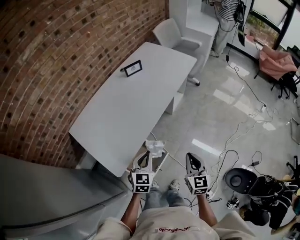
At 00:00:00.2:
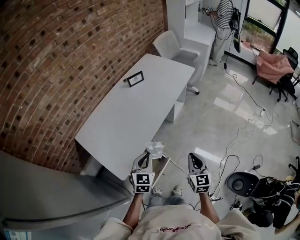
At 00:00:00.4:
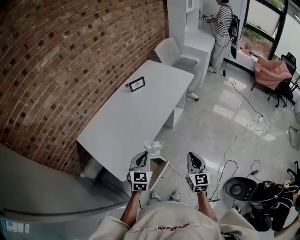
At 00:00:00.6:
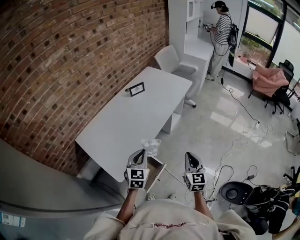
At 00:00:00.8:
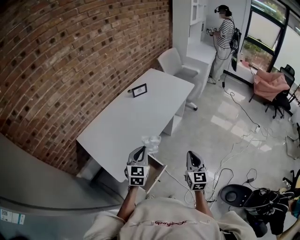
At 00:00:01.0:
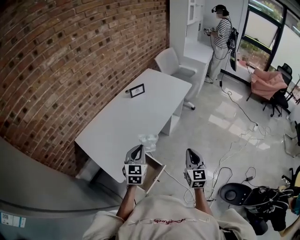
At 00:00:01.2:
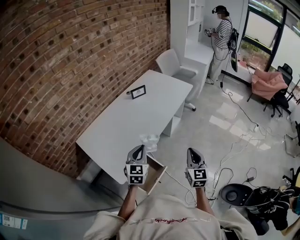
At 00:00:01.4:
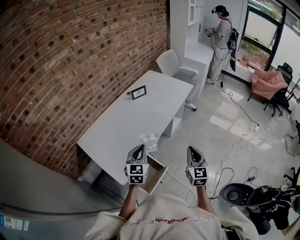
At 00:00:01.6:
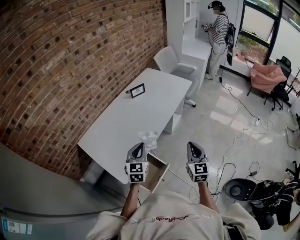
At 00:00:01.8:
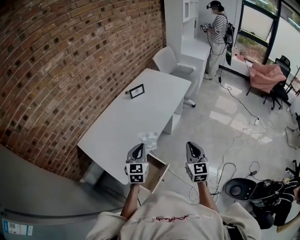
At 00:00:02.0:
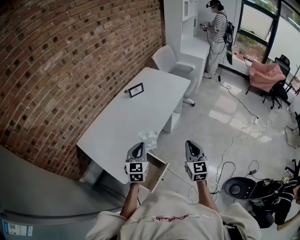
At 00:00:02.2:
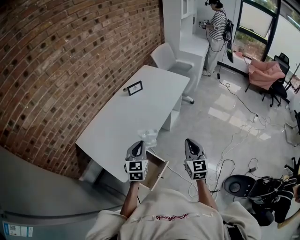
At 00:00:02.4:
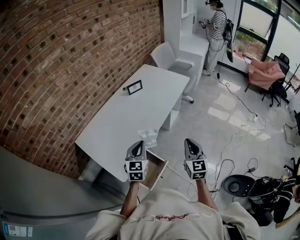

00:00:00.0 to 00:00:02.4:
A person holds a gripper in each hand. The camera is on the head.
00:00:00.0 to 00:00:01.2: The two grippers go about 10 cm upward.
00:00:01.2 to 00:00:02.4: The grippers make only small movements.

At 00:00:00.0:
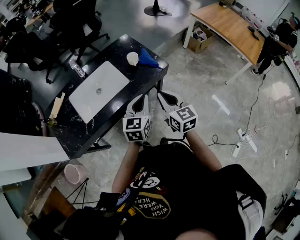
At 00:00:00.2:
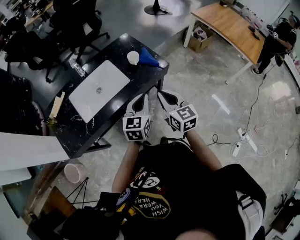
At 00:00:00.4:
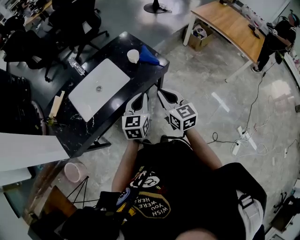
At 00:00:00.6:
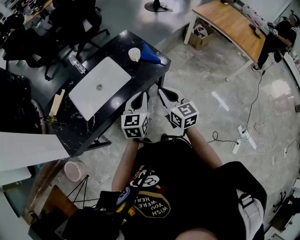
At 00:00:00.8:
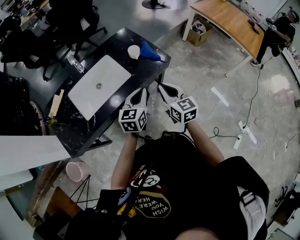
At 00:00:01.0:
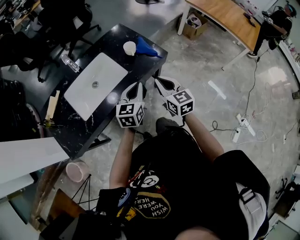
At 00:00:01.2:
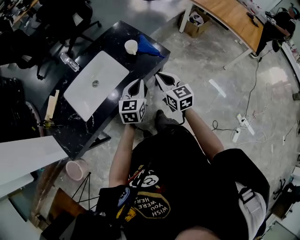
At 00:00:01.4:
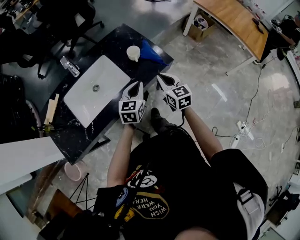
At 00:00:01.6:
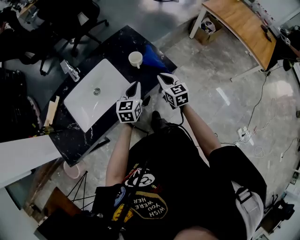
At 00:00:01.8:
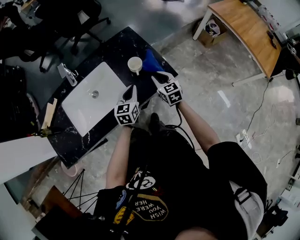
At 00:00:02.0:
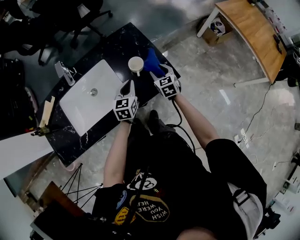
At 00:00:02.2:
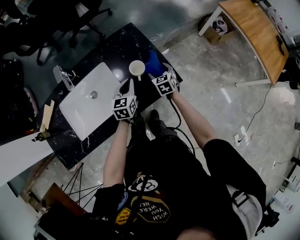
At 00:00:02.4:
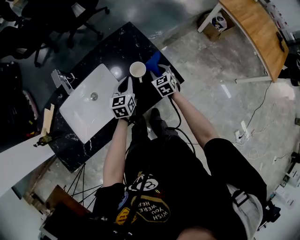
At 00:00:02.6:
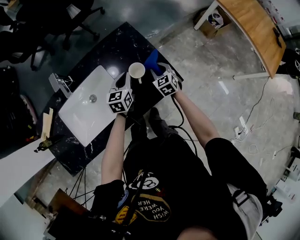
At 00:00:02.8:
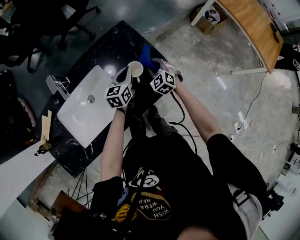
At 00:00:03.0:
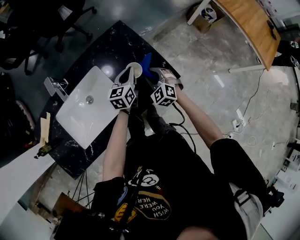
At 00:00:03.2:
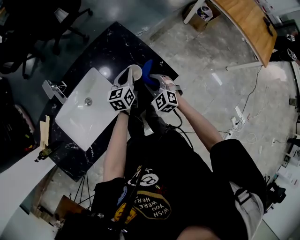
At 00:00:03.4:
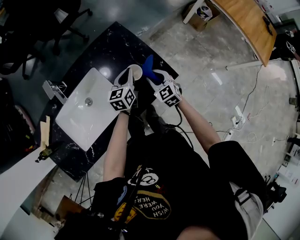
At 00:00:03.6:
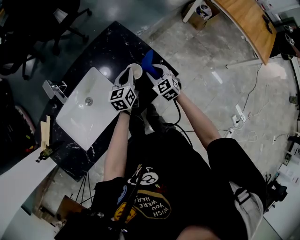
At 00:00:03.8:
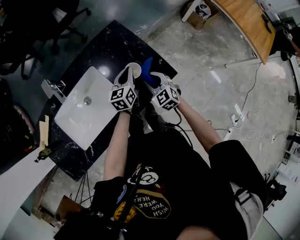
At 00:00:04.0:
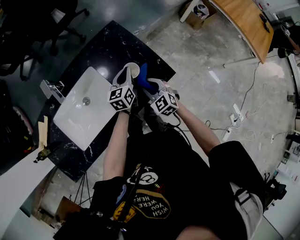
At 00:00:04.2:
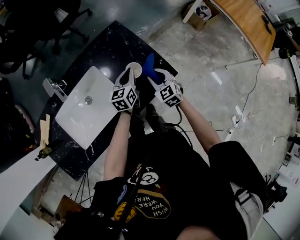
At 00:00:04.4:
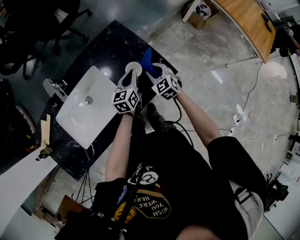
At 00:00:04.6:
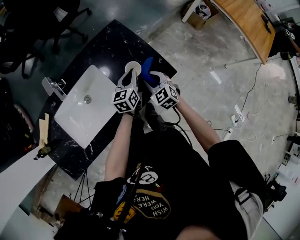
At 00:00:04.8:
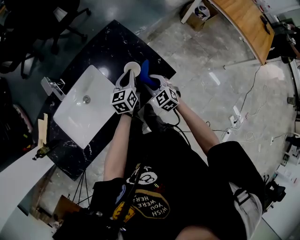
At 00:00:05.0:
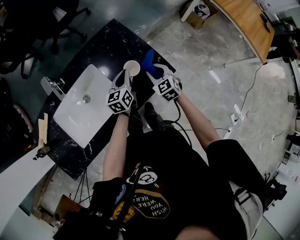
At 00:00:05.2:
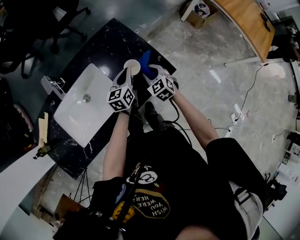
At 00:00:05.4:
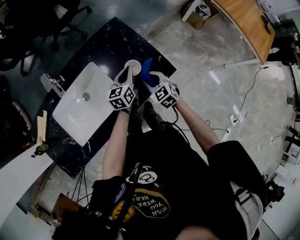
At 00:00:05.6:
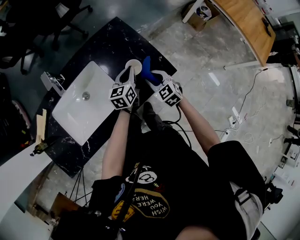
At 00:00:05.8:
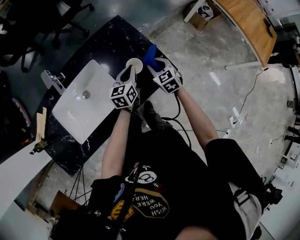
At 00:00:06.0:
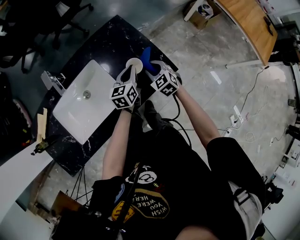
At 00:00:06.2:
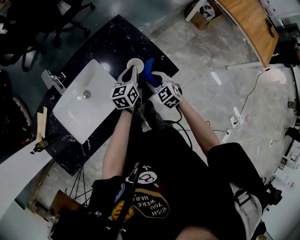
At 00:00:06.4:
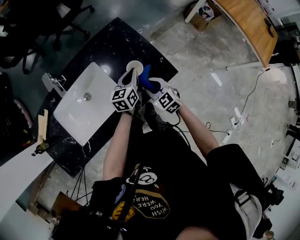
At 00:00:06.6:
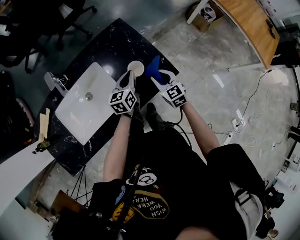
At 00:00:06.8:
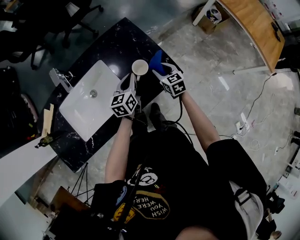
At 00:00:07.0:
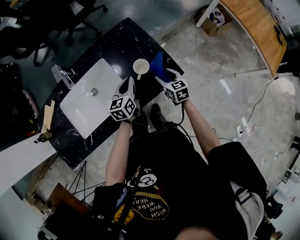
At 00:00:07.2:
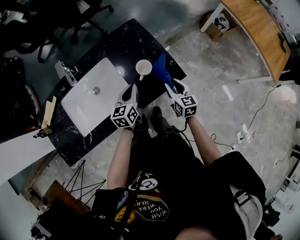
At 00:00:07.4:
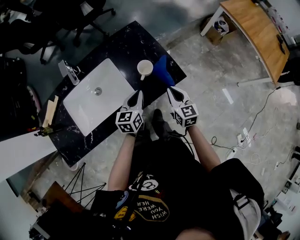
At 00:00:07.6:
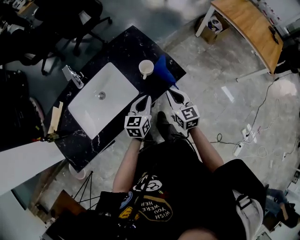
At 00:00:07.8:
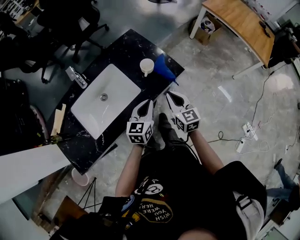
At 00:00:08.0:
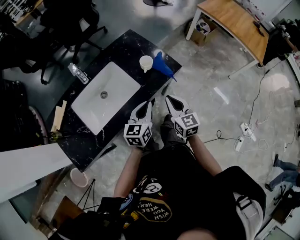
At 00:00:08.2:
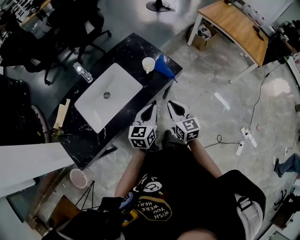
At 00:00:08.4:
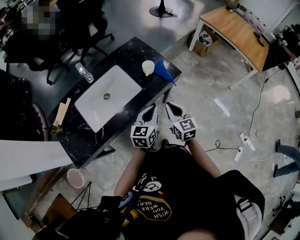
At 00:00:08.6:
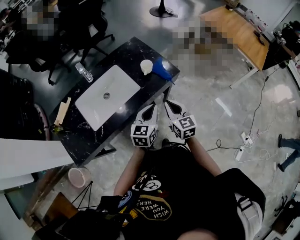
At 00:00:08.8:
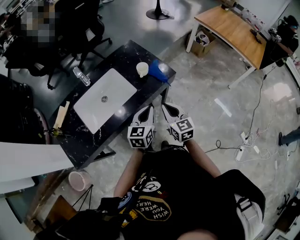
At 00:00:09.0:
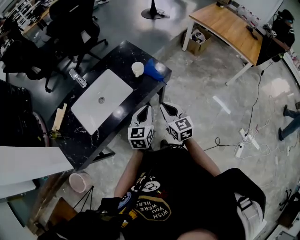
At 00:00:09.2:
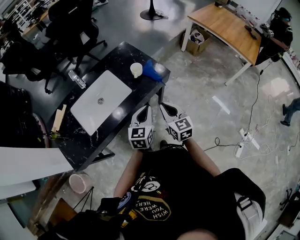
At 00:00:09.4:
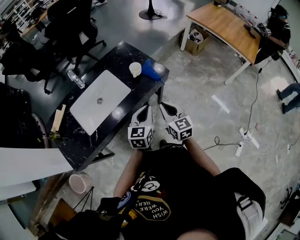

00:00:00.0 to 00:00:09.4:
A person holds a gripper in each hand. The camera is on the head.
00:00:00.0 to 00:00:01.6: Both grippers travel together forward and downward, some 25 cm.
00:00:01.6 to 00:00:03.2: The left gripper is displaced forward by roughly 20 cm. The right gripper goes approximately 15 cm downward and forward, swivels some 40 degrees, and opens its fingers.
00:00:03.2 to 00:00:04.8: The right gripper goes forward and backward, roughly 5 cm each way, reversing 3 times.
00:00:04.8 to 00:00:06.2: The right gripper swings forward and backward, about 5 cm each way, with 3 reversals.
00:00:06.2 to 00:00:07.8: The left gripper goes approximately 20 cm backward; the right gripper goes some 20 cm backward and upward, turns by about 40 degrees, and closes.
00:00:07.8 to 00:00:09.4: The left gripper moves backward, to the right and upward, roughly 10 cm. The right gripper heads backward, covering some 10 cm.

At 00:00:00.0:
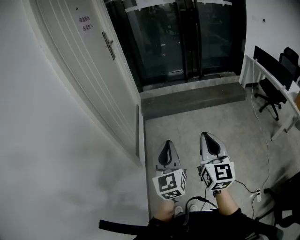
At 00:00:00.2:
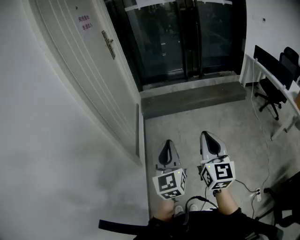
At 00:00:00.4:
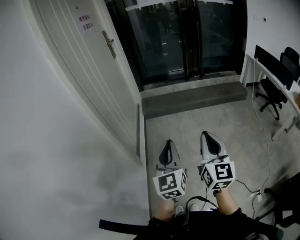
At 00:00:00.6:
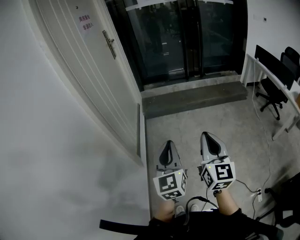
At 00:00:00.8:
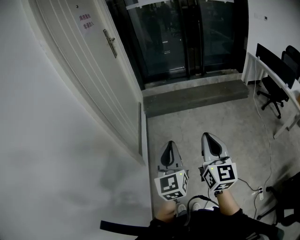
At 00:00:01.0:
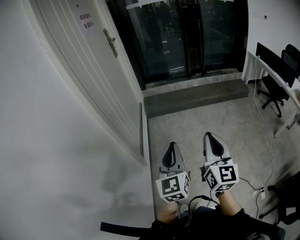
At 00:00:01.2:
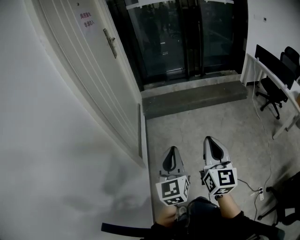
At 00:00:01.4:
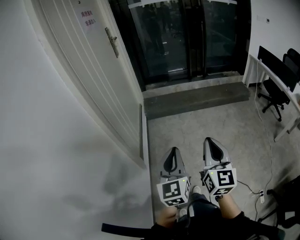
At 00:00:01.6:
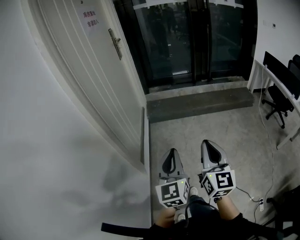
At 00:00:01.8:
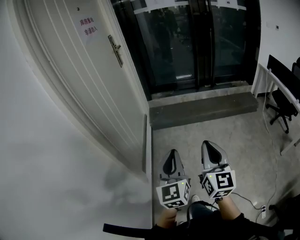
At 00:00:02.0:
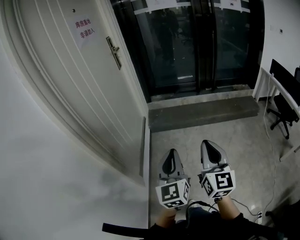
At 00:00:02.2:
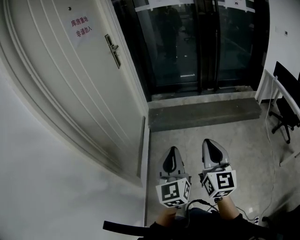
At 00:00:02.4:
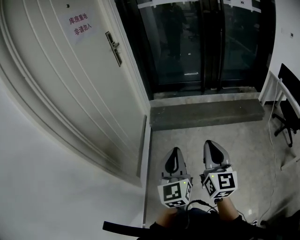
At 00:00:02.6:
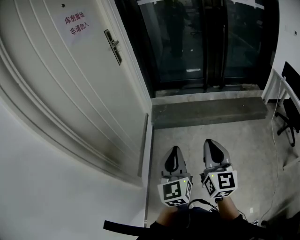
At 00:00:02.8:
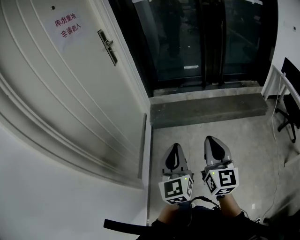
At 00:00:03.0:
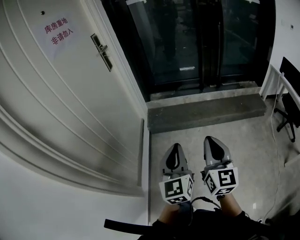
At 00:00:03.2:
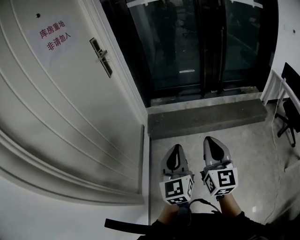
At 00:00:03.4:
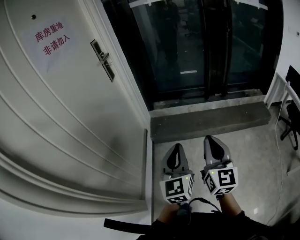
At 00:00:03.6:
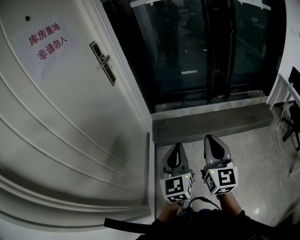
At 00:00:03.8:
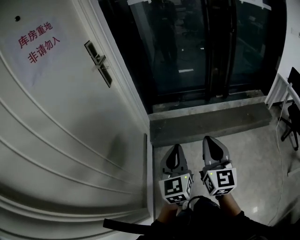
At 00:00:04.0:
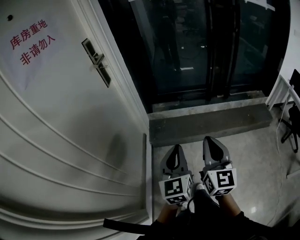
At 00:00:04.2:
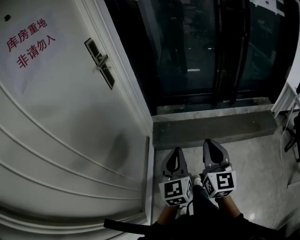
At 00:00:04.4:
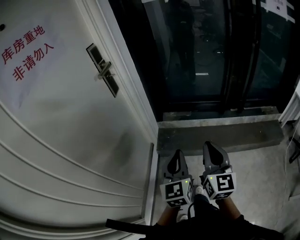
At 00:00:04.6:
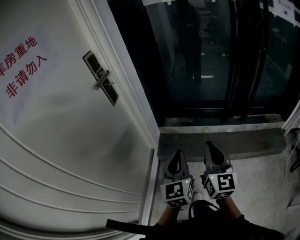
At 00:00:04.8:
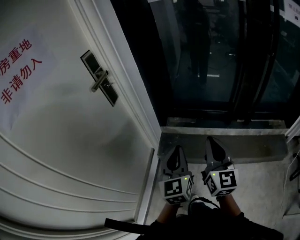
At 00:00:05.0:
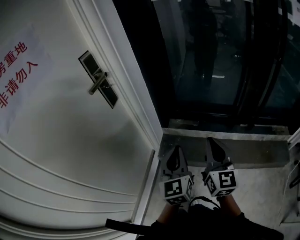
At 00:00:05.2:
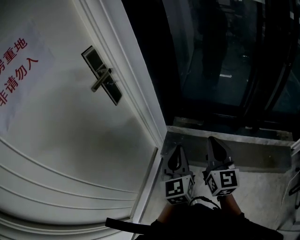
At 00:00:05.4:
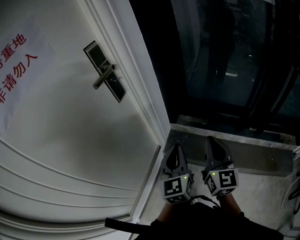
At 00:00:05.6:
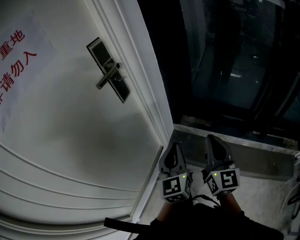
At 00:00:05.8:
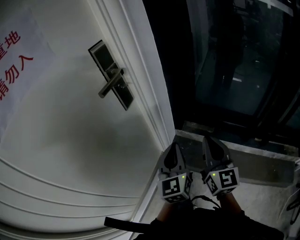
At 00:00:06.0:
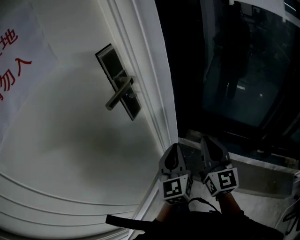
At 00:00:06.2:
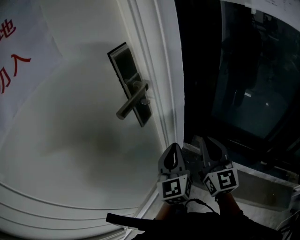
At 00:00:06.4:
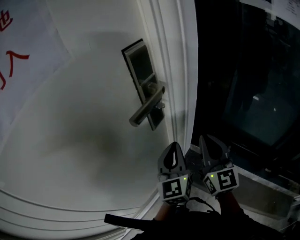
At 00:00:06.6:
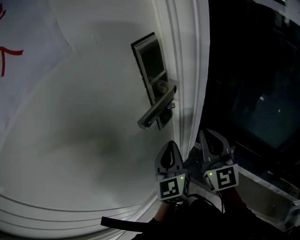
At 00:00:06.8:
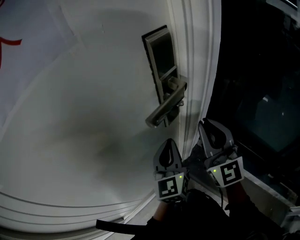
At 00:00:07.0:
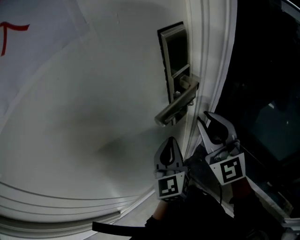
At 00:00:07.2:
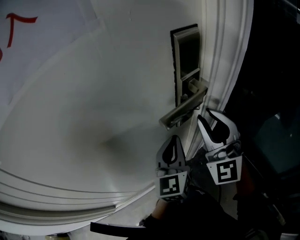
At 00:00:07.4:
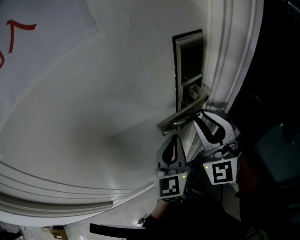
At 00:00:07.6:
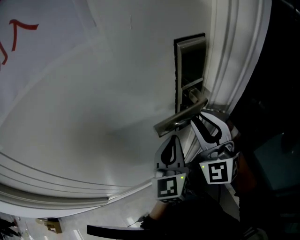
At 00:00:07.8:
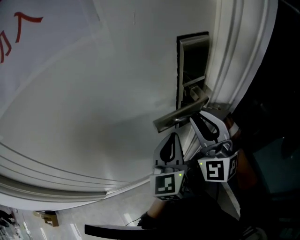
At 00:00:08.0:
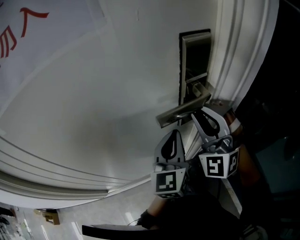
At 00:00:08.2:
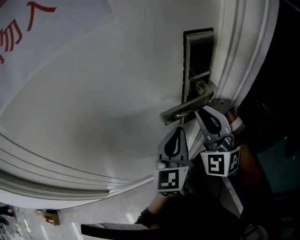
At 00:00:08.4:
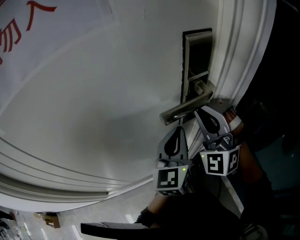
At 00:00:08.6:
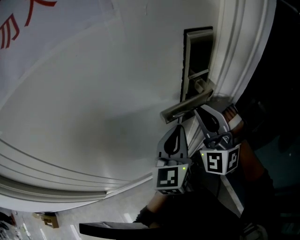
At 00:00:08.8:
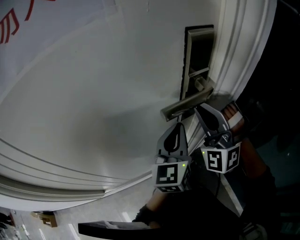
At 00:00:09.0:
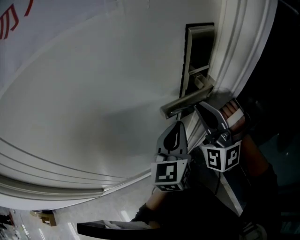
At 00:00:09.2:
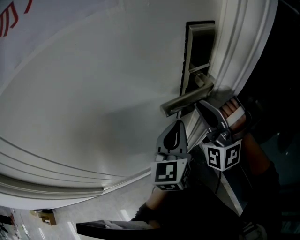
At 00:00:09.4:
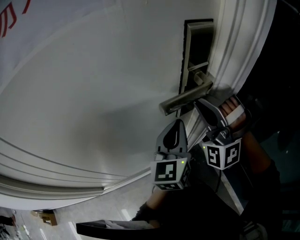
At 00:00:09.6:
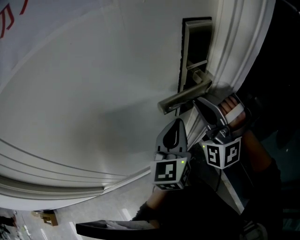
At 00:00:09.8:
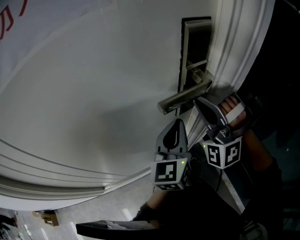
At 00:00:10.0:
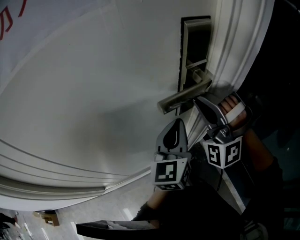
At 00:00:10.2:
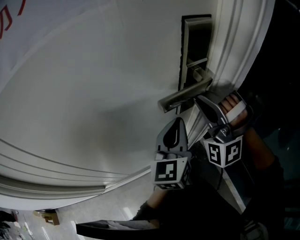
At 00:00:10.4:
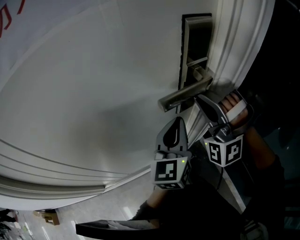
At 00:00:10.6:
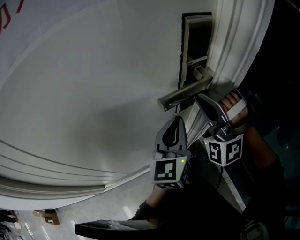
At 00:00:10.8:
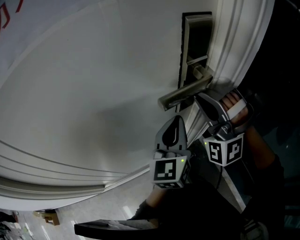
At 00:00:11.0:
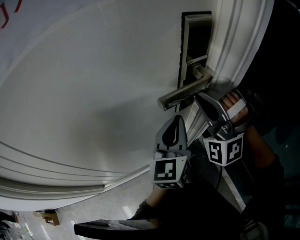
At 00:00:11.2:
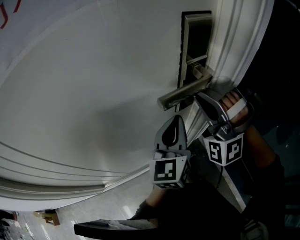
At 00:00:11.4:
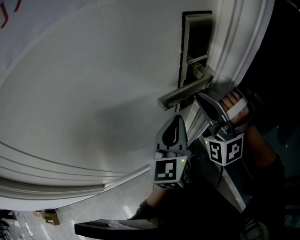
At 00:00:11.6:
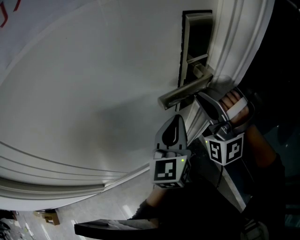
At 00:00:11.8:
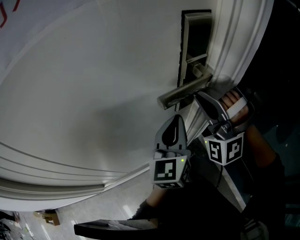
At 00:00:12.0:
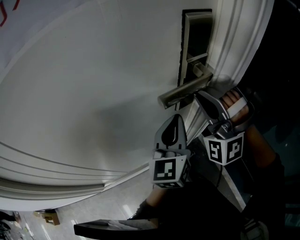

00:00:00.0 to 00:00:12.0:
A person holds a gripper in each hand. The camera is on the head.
00:00:00.0 to 00:00:01.6: Both grippers move forward, about 5 cm.
00:00:01.6 to 00:00:03.0: The two grippers go about 30 cm forward.
00:00:03.0 to 00:00:04.4: Both grippers move forward, about 35 cm.
00:00:04.4 to 00:00:06.0: The right gripper ends up roughly 35 cm from where it was, and turns by approximately 30 degrees. The left gripper moves some 30 cm, and swivels some 20 degrees.
00:00:06.0 to 00:00:07.6: The left gripper ends up roughly 20 cm from where it was, and turns by approximately 30 degrees, while the right gripper ends up about 30 cm from where it was, and swivels some 70 degrees.
00:00:07.6 to 00:00:09.0: The right gripper turns by approximately 30 degrees.
00:00:09.0 to 00:00:10.4: There are only small adjustments of the grippers.
00:00:10.4 to 00:00:12.0: Both grippers stay put.
